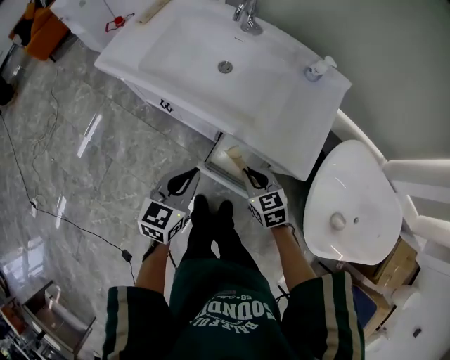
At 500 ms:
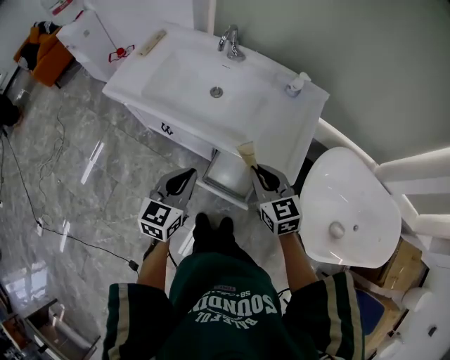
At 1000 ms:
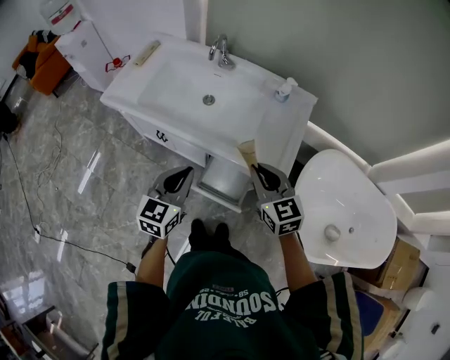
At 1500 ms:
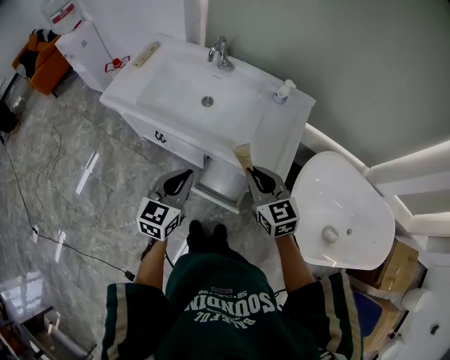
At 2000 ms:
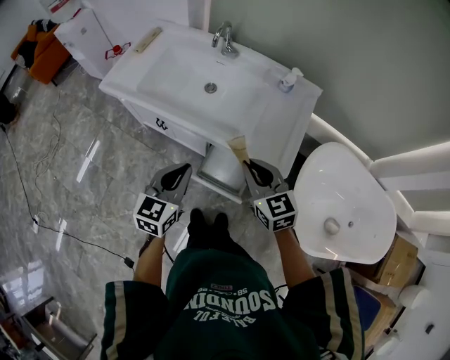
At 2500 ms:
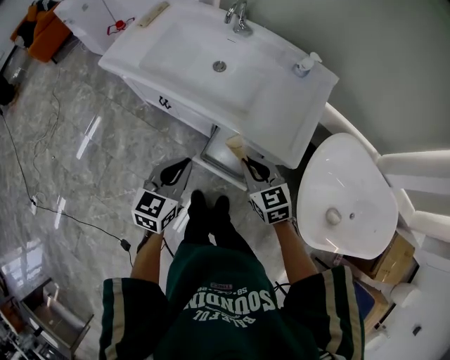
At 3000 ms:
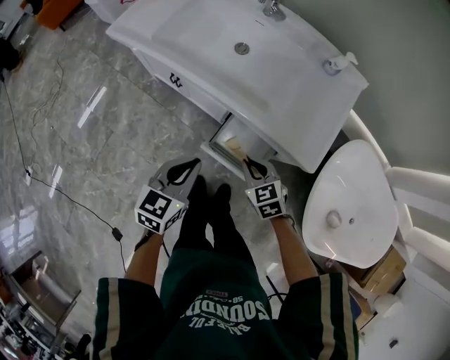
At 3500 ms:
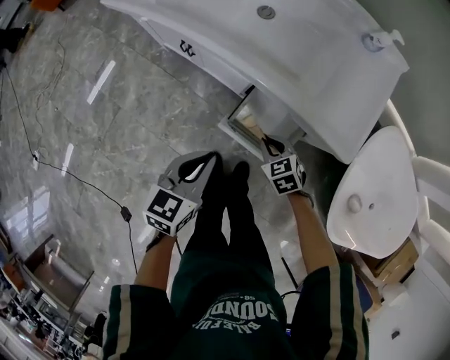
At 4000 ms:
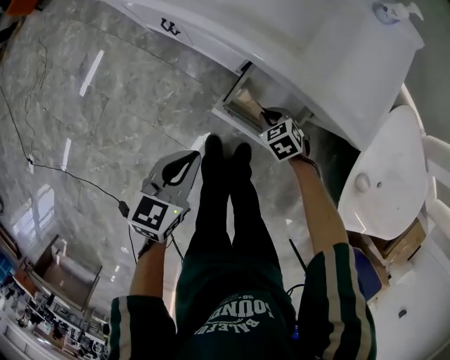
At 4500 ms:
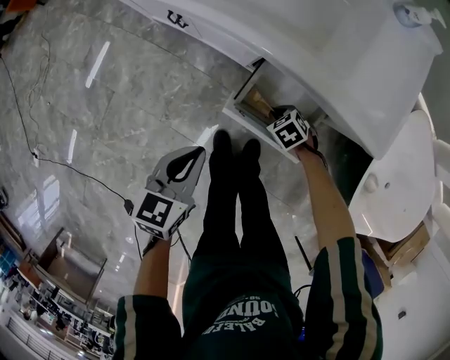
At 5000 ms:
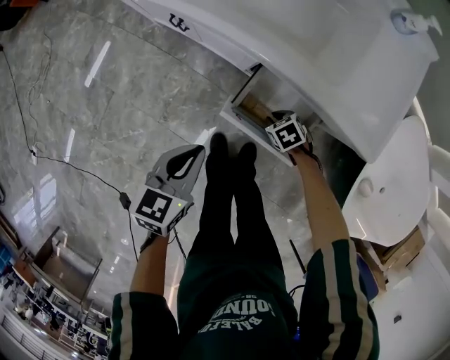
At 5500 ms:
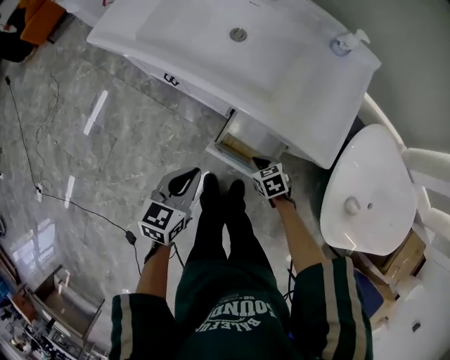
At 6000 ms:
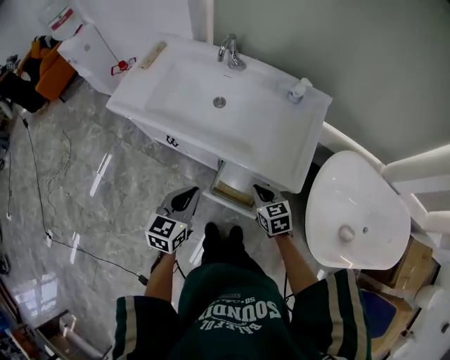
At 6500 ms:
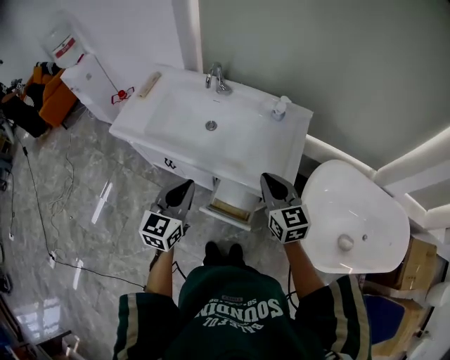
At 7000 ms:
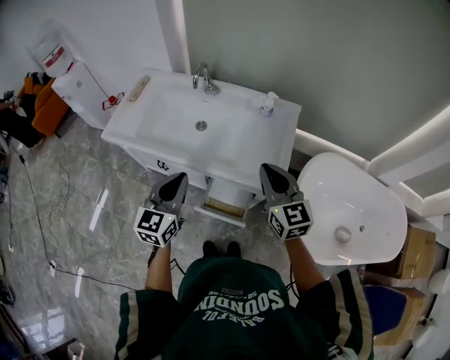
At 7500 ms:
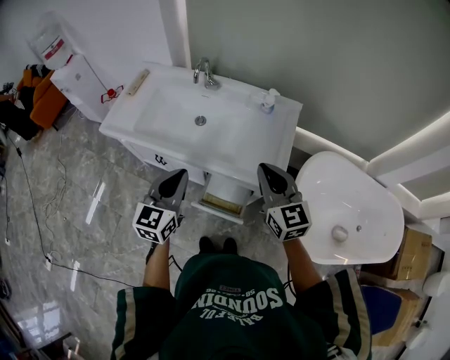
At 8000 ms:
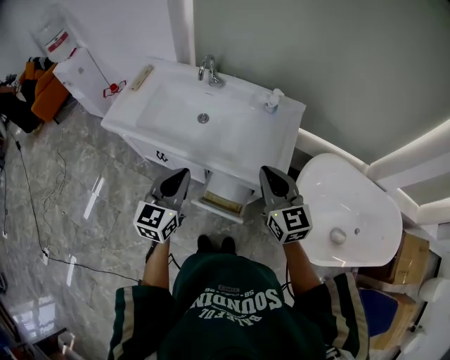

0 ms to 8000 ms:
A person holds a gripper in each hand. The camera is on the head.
0 ms to 2000 ms: The right gripper moves upward, approximately 20 cm. The left gripper heads upward, covering about 10 cm.
2000 ms to 4000 ms: The left gripper is displaced downward by roughly 25 cm, and rotates some 20 degrees. Meanwhile the right gripper goes some 50 cm downward, and angles its fingers downward, by approximately 40 degrees.
4000 ms to 6000 ms: The left gripper travels upward and forward by approximately 20 cm; the right gripper is displaced upward by approximately 30 cm, and swivels roughly 40 degrees.
6000 ms to 8000 ms: The right gripper heads upward, covering about 25 cm, and angles its fingers upward, by about 30 degrees. The left gripper goes roughly 10 cm upward.

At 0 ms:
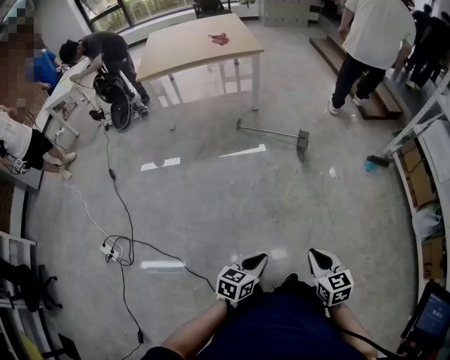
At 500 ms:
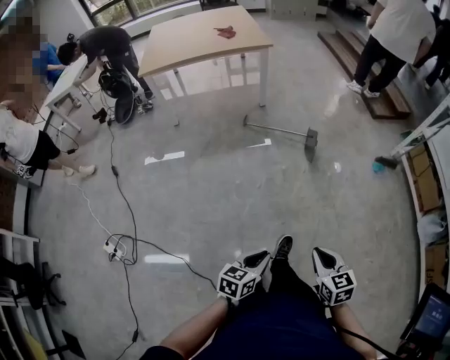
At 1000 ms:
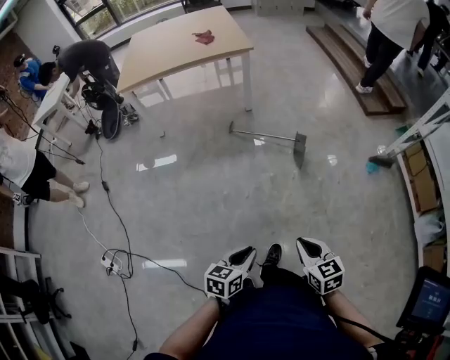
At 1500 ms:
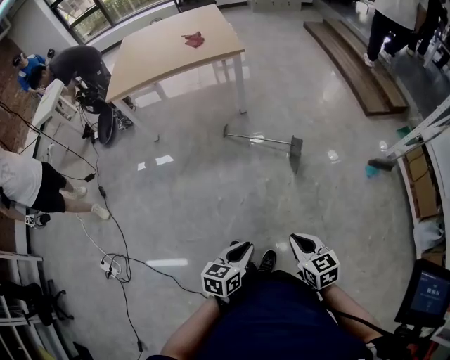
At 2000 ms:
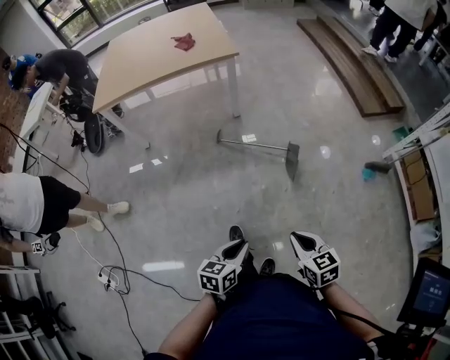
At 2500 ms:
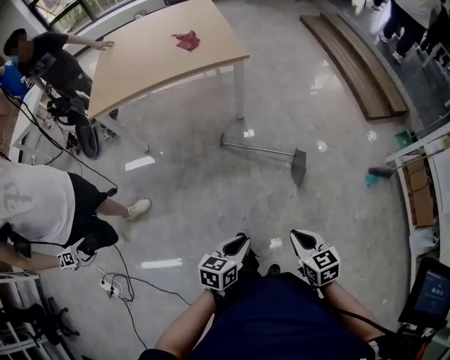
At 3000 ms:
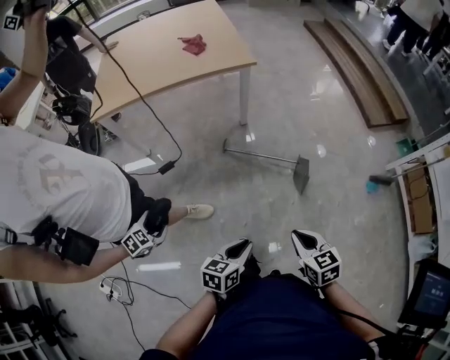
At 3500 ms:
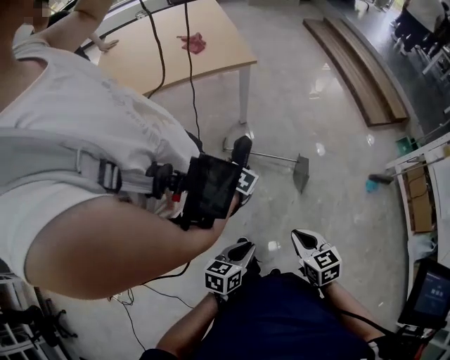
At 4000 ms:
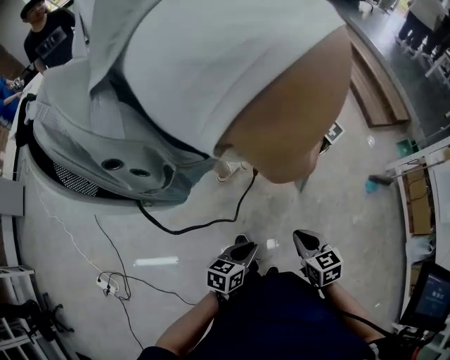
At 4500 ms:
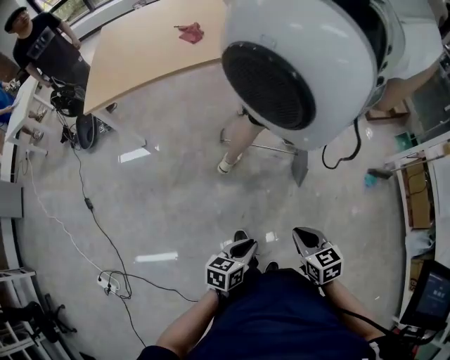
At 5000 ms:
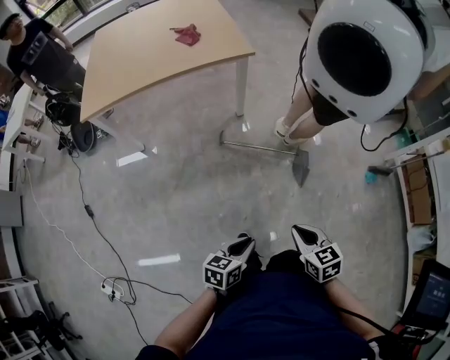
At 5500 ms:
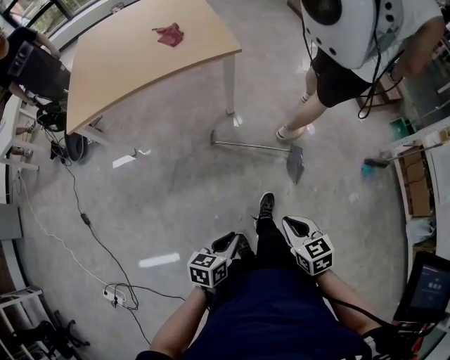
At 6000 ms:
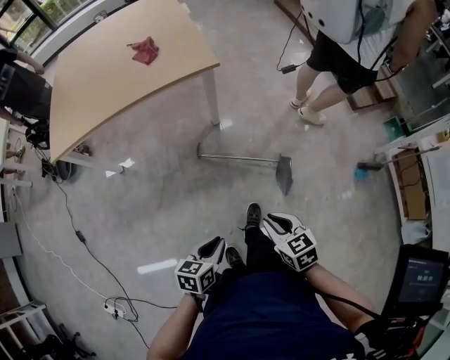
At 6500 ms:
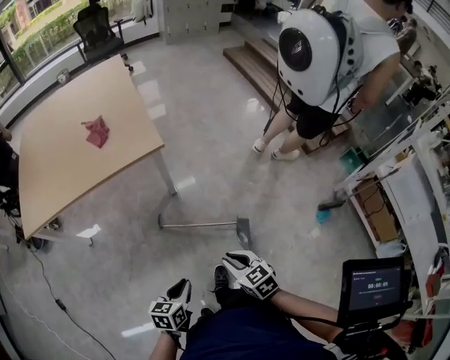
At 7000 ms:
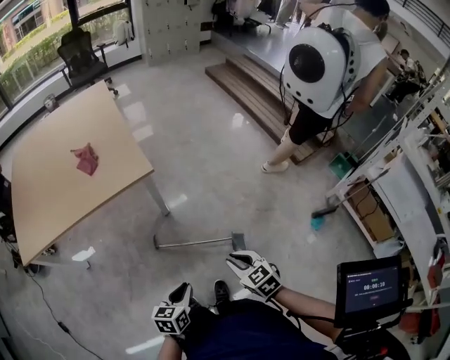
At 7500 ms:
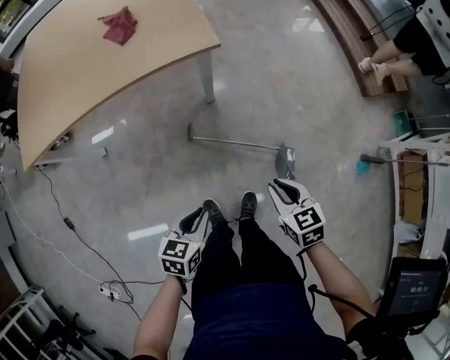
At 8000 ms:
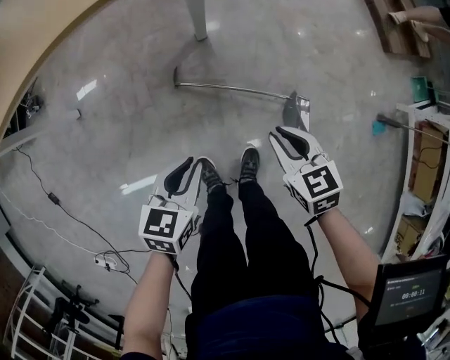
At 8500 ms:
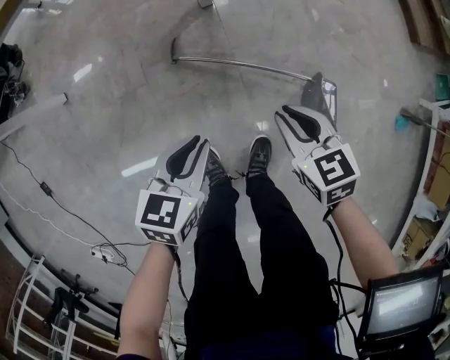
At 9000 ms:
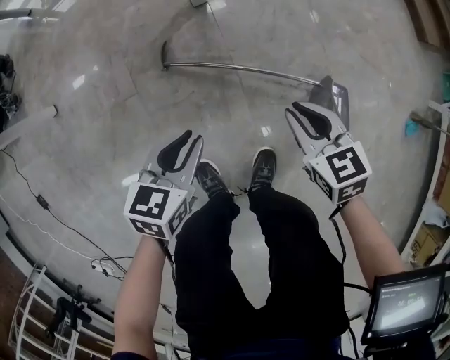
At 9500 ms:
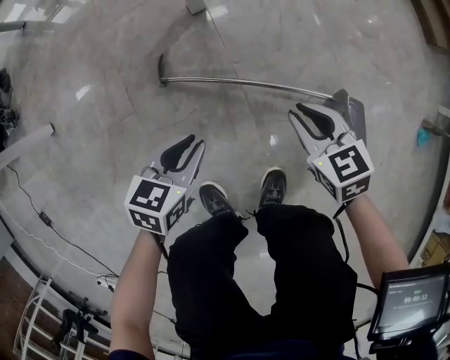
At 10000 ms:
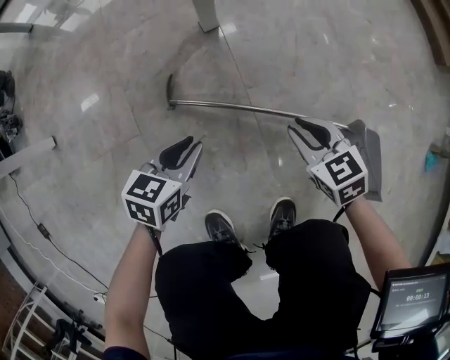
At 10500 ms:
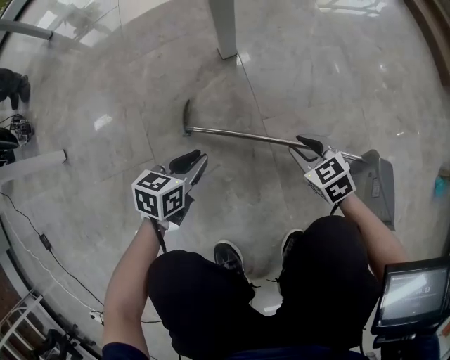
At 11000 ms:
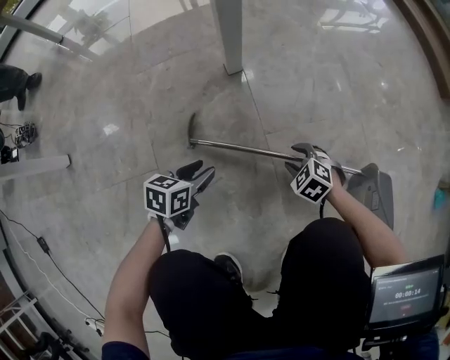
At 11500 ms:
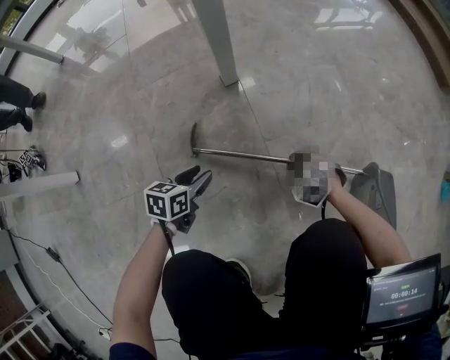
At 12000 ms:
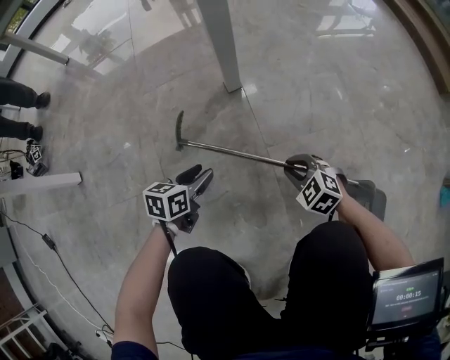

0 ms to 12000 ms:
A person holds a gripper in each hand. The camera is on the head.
0 ms to 2000 ms: Both grippers travel together forward, roughly 35 cm.
2000 ms to 4000 ms: Both grippers move forward and to the left, some 10 cm.
4000 ms to 6000 ms: The two grippers go about 15 cm forward.
6000 ms to 8000 ms: Both grippers travel together forward and downward, approximately 25 cm.
8000 ms to 10000 ms: Both grippers travel together downward, some 40 cm.
10000 ms to 12000 ms: The left gripper heads downward, to the left and forward, covering roughly 10 cm, and opens its fingers. The right gripper goes approximately 10 cm downward, rotates about 30 degrees, and opens, then closes once more.

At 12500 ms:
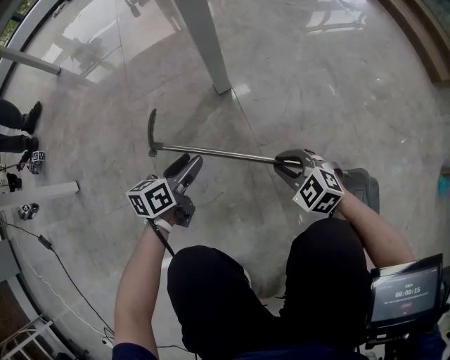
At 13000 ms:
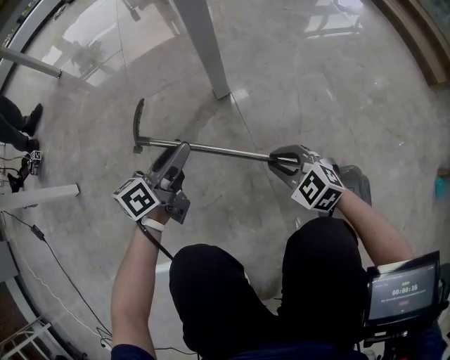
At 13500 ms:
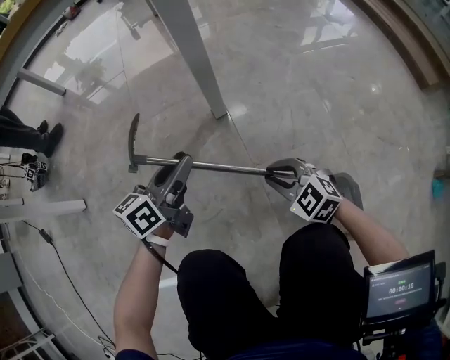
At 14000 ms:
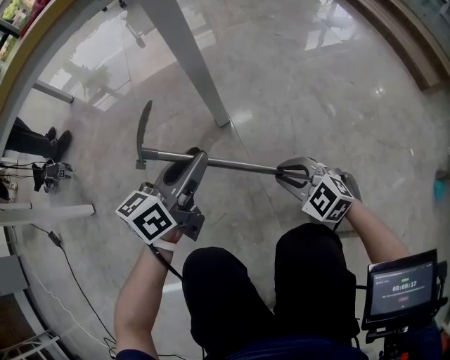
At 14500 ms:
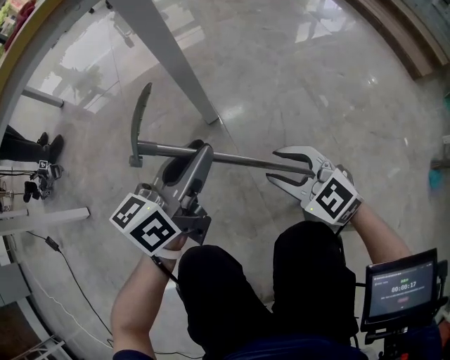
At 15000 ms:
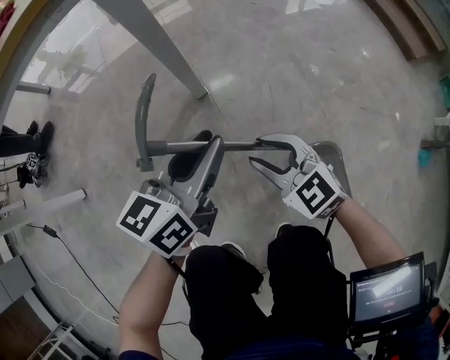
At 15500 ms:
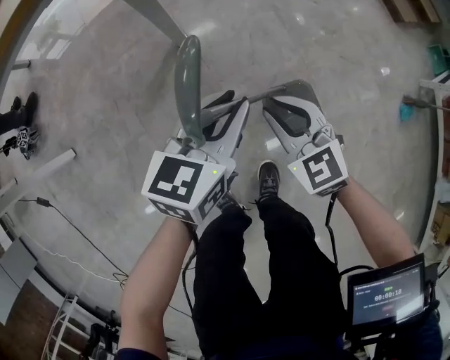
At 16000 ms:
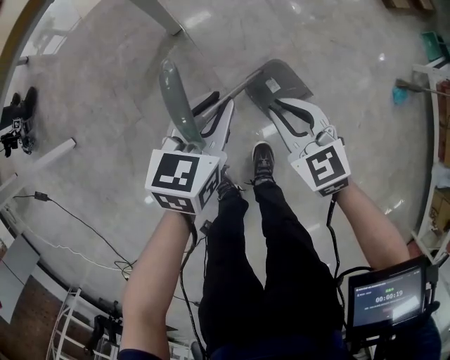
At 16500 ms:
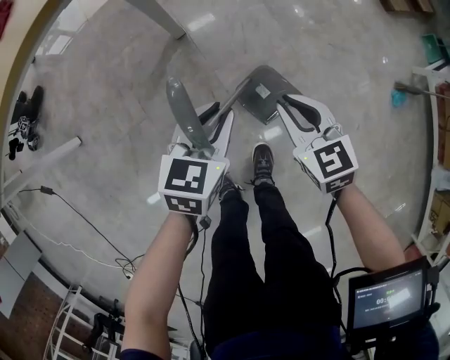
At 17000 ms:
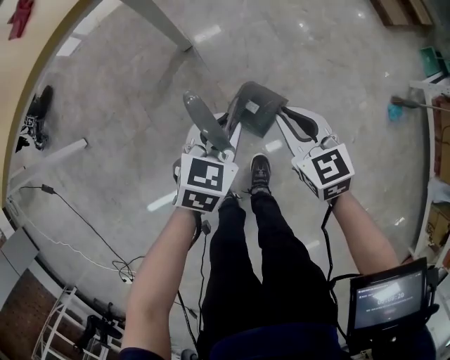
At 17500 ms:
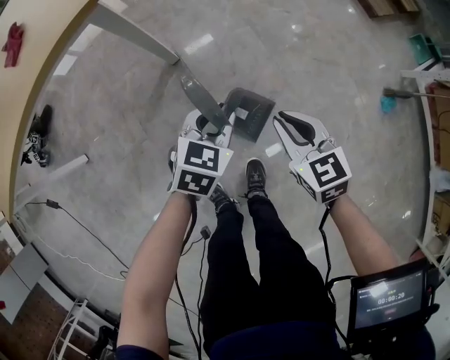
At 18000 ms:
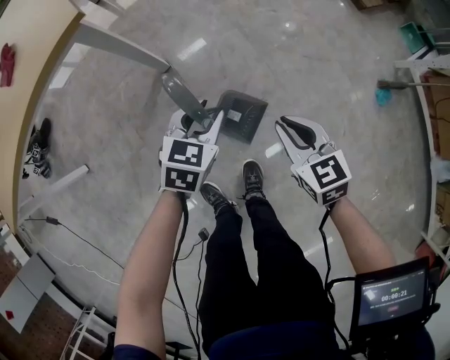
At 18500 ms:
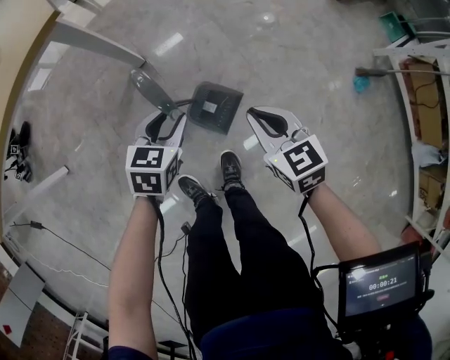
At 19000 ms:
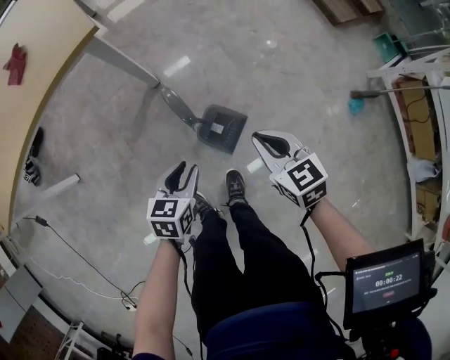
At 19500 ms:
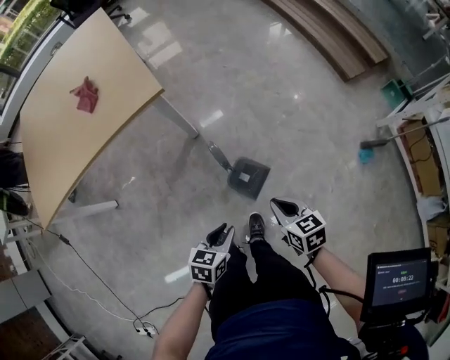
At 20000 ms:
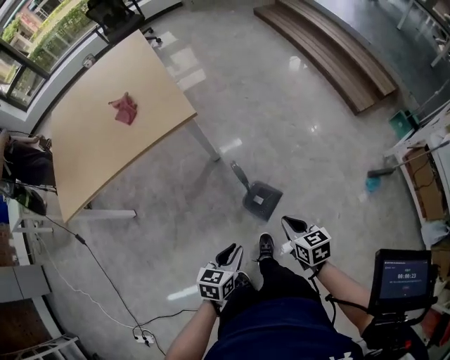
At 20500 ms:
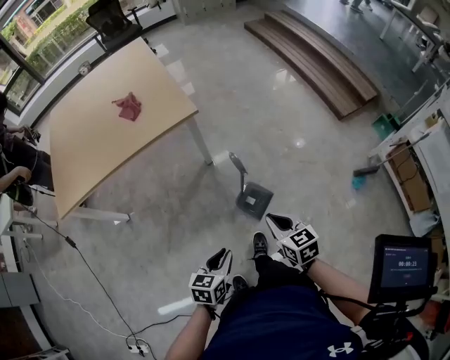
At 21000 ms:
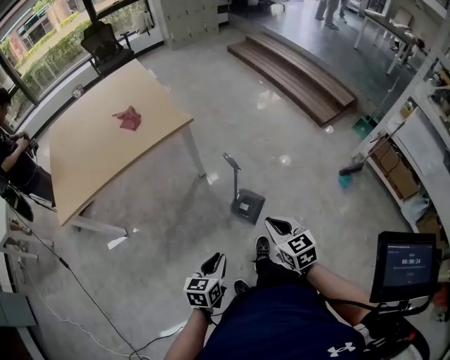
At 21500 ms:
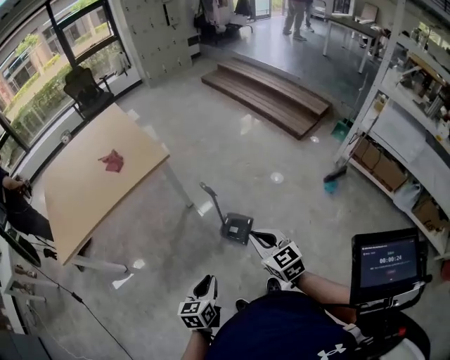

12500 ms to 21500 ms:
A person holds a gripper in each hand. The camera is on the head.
12500 ms to 14500 ms: The right gripper goes roughly 20 cm upward, changes its angle by approximately 20 degrees, and opens; the left gripper shifts approximately 30 cm upward and to the right, swivels approximately 30 degrees, and closes up.
14500 ms to 17000 ms: The right gripper heads upward, to the right and backward, covering approximately 25 cm, changes its angle by approximately 30 degrees, and closes, while the left gripper is displaced backward, to the right and upward by approximately 20 cm, and tilts its fingers about 30 degrees downward.
17000 ms to 19500 ms: The right gripper goes roughly 15 cm upward, backward and to the right. The left gripper is displaced backward and upward by approximately 20 cm.
19500 ms to 21500 ms: The right gripper goes some 30 cm upward and backward, and turns by about 30 degrees; the left gripper shifts roughly 25 cm backward and upward.
